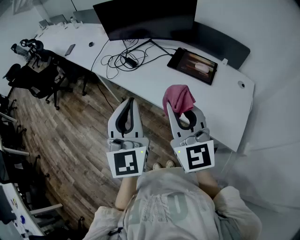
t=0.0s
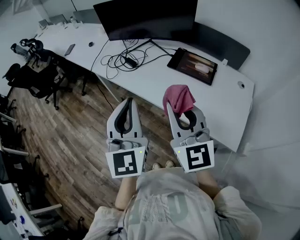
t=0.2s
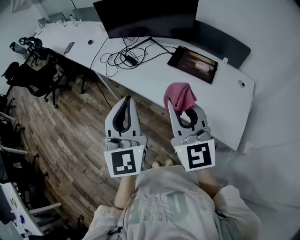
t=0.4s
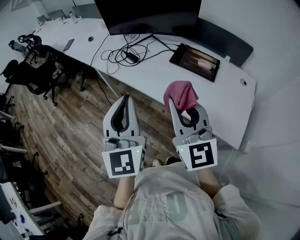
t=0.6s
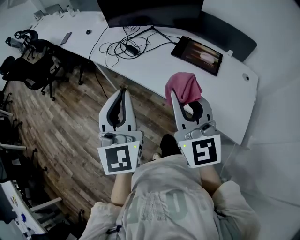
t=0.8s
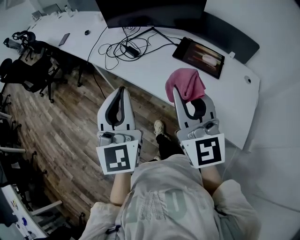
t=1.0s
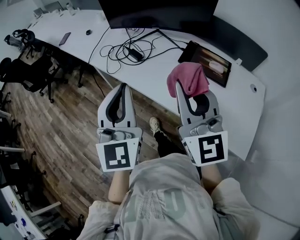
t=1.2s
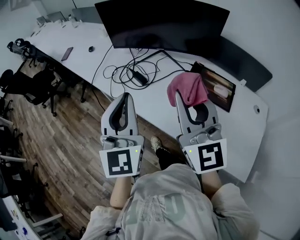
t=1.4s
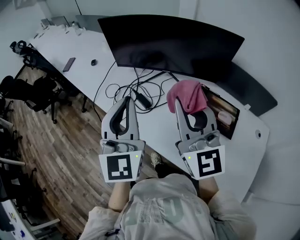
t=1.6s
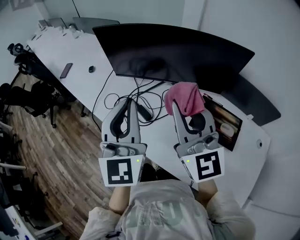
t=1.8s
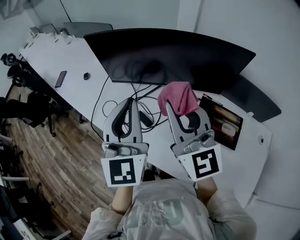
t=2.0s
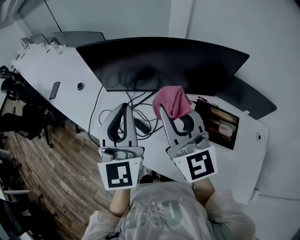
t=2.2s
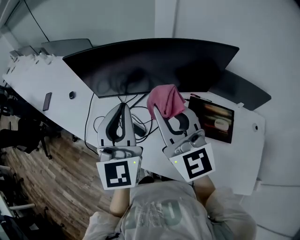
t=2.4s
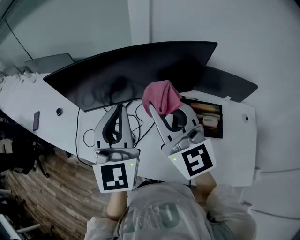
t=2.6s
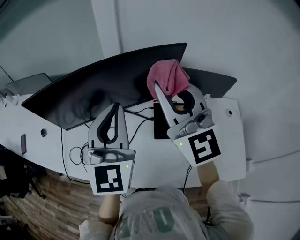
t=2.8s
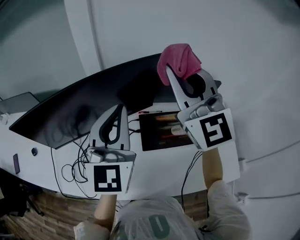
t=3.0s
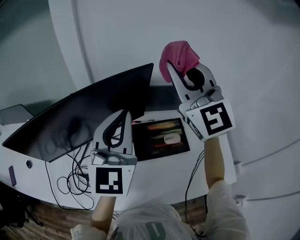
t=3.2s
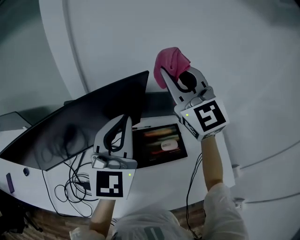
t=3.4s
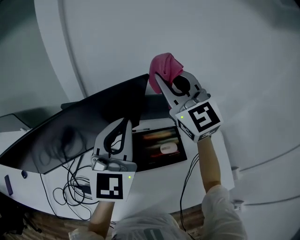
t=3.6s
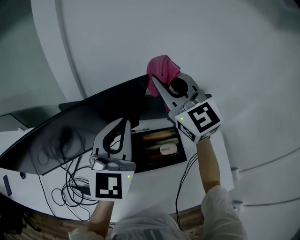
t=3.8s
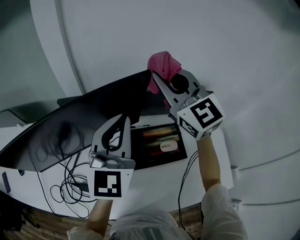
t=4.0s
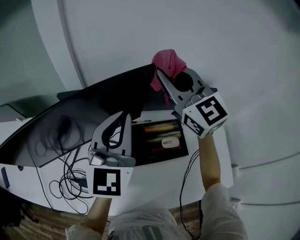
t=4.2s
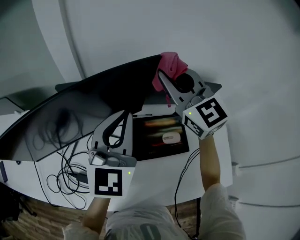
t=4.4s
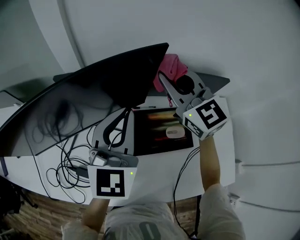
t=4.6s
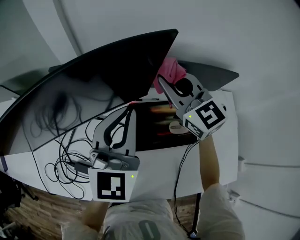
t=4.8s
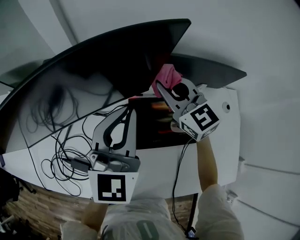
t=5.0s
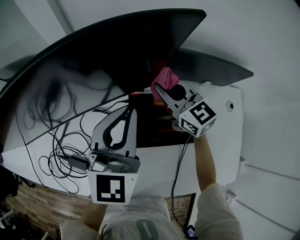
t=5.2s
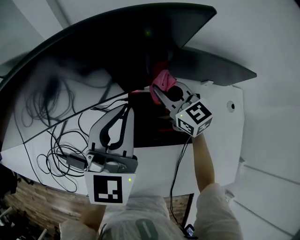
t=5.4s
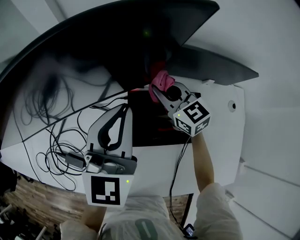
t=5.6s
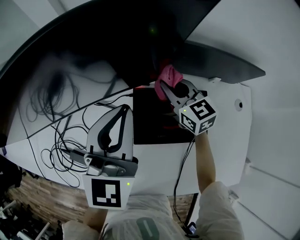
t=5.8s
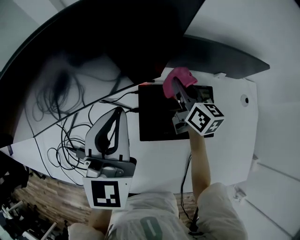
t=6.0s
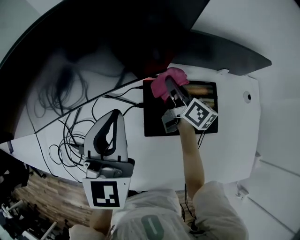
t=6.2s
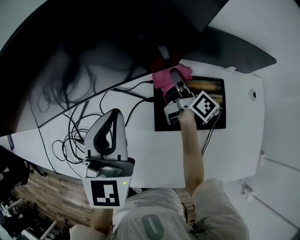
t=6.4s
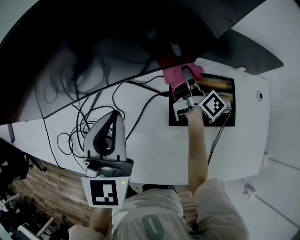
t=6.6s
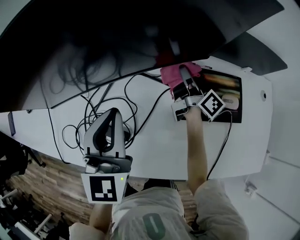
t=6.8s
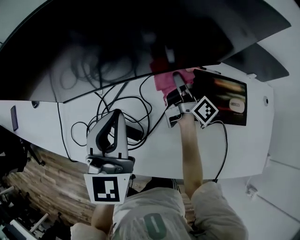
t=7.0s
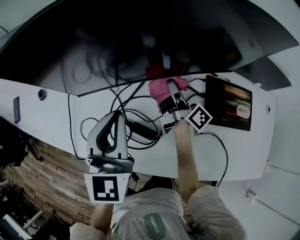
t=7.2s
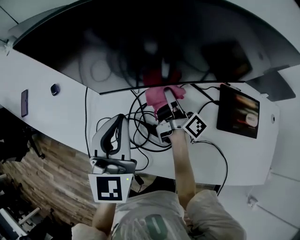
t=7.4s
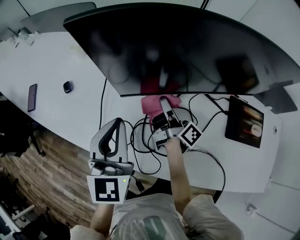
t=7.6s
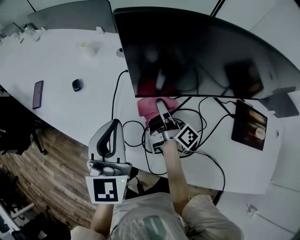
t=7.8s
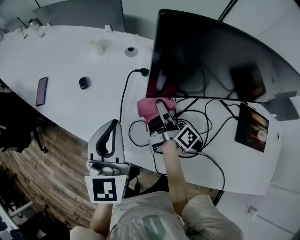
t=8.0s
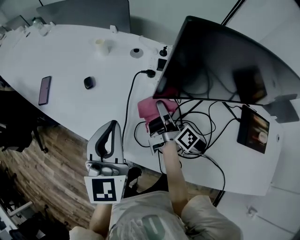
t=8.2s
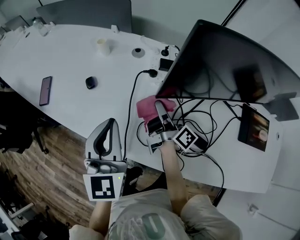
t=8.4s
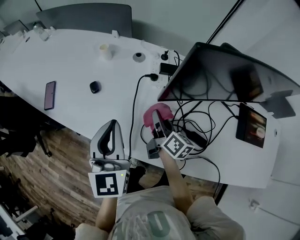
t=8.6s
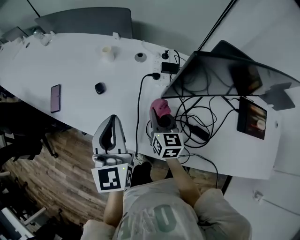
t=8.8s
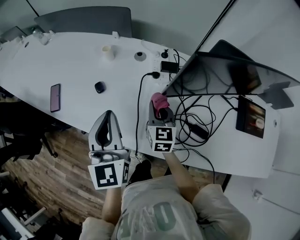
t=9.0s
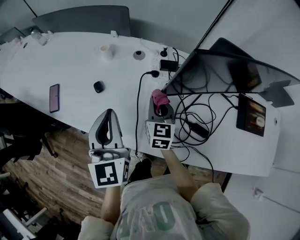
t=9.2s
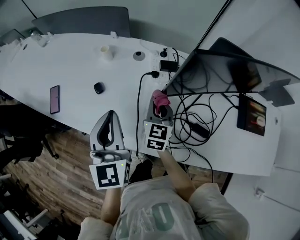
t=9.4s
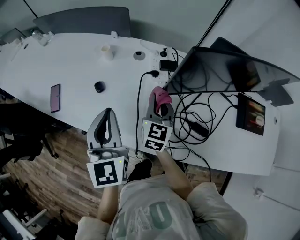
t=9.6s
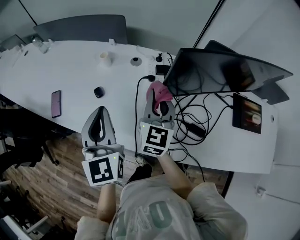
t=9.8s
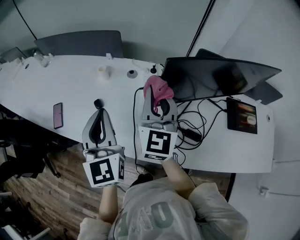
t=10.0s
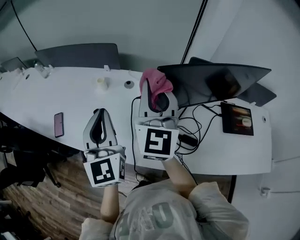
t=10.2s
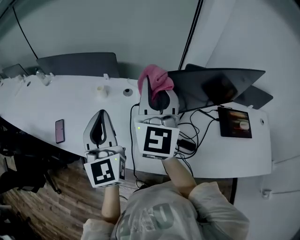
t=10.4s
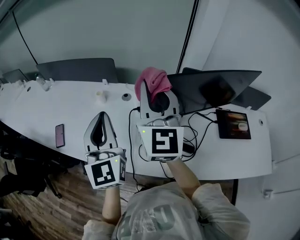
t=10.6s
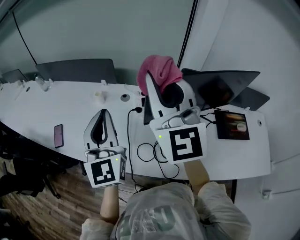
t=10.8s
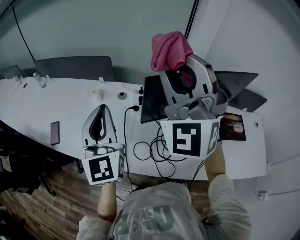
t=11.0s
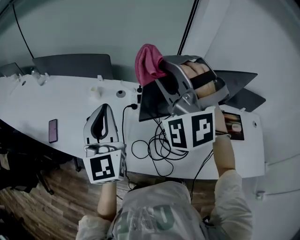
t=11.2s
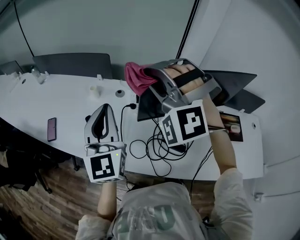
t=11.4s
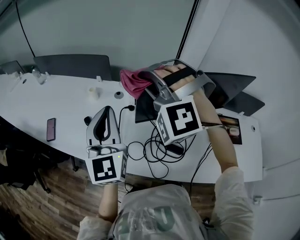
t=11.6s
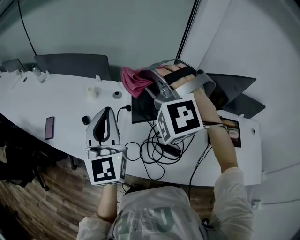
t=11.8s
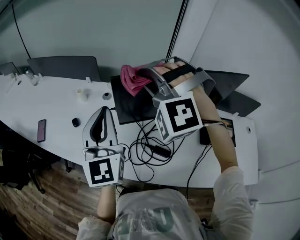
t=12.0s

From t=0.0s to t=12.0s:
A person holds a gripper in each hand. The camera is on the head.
From t=0.0s to t=1.6s: The grippers both shift forward by roughly 30 cm.
From t=1.6s to t=3.0s: The right gripper ends up some 25 cm from where it was, and rotates about 40 degrees. Meanwhile the left gripper moves approximately 25 cm, and changes its angle by roughly 40 degrees.
From t=3.0s to t=4.4s: The right gripper travels forward and downward by some 20 cm. The left gripper moves forward, downward and to the right, about 15 cm.
From t=4.4s to t=6.0s: The left gripper heads downward, covering approximately 10 cm; the right gripper goes about 30 cm downward, and rotates around the line of its fingers by roughly 50 degrees, clockwise from behind.
From t=6.0s to t=7.6s: The two grippers travel together, to the left, roughly 50 cm. The right gripper twists approximately 50 degrees clockwise, seen from behind.
From t=7.6s to t=9.0s: Both grippers travel together to the left, roughly 20 cm. The right gripper rotates around the line of its fingers by roughly 70 degrees, counterclockwise from behind.
From t=9.0s to t=10.4s: The right gripper is displaced upward by roughly 35 cm, and tips its fingers upward by approximately 40 degrees. Meanwhile the left gripper heads upward, covering some 10 cm.
From t=10.4s to t=12.0s: The left gripper moves to the right, about 10 cm; the right gripper travels to the right by approximately 5 cm, moves some 10 cm upward and comes back, and rolls counterclockwise, seen from behind, by approximately 90 degrees.

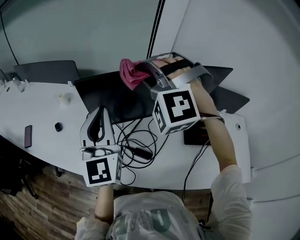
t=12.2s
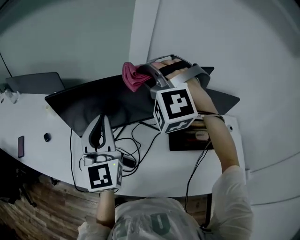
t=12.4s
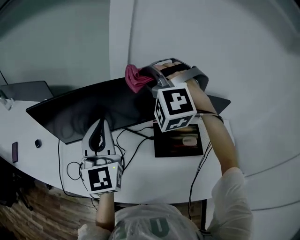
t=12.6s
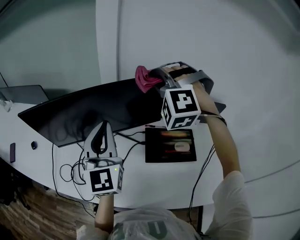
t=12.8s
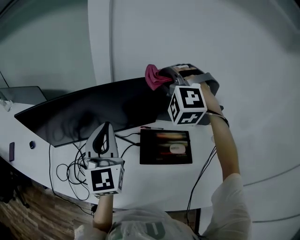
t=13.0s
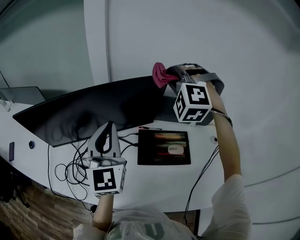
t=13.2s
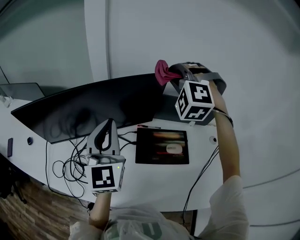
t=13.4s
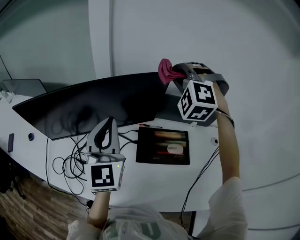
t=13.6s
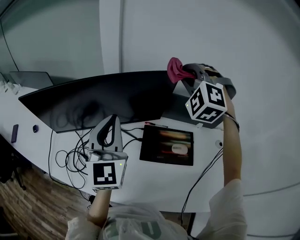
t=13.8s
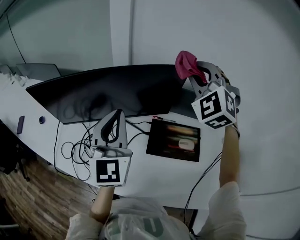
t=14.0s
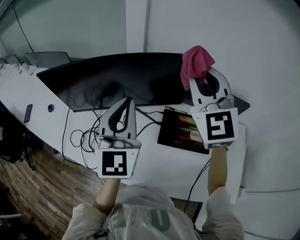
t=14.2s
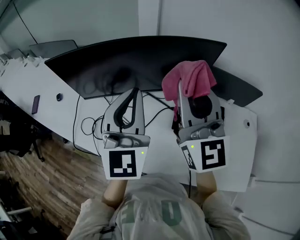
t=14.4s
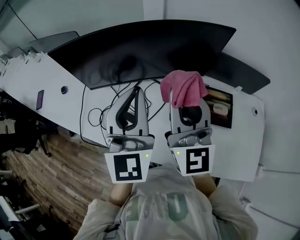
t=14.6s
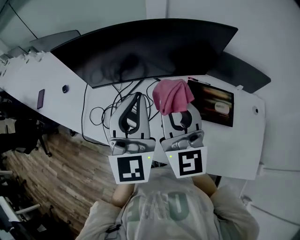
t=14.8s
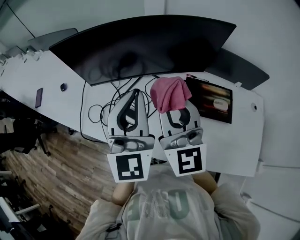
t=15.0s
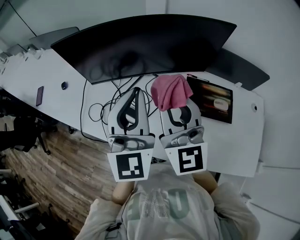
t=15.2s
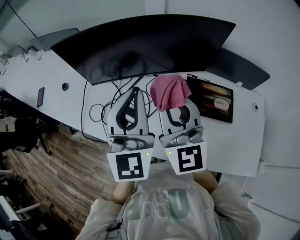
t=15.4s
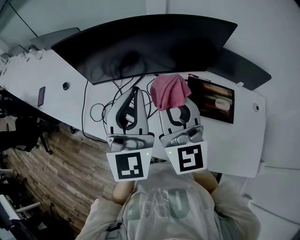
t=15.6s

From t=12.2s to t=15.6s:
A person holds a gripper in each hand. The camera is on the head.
From t=12.2s to t=13.8s: Both grippers move to the right, roughly 35 cm. The right gripper rotates approximately 20 degrees.
From t=13.8s to t=15.6s: The right gripper heads to the left and backward, covering approximately 35 cm, and twists roughly 70 degrees clockwise, seen from behind, while the left gripper is displaced to the left and backward by about 15 cm.

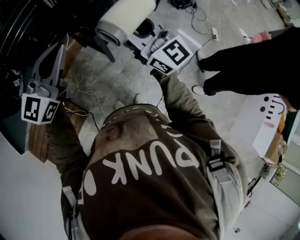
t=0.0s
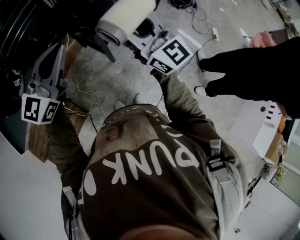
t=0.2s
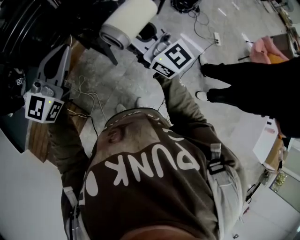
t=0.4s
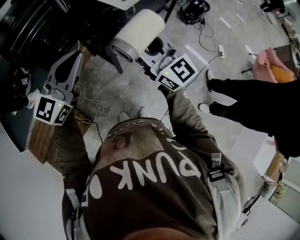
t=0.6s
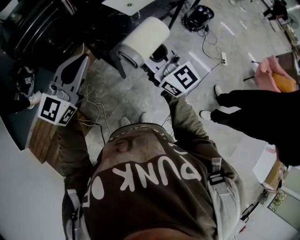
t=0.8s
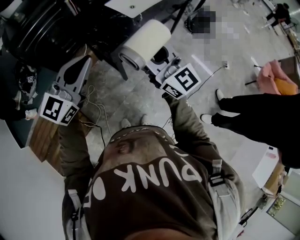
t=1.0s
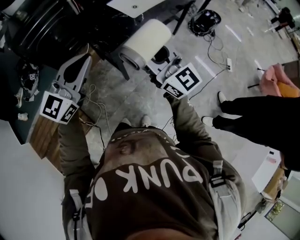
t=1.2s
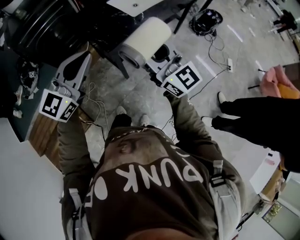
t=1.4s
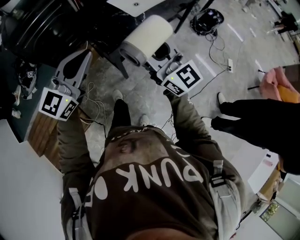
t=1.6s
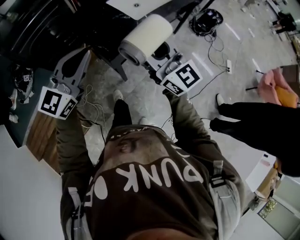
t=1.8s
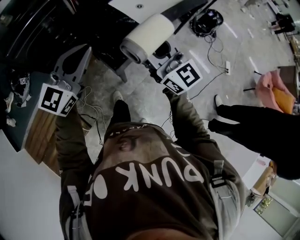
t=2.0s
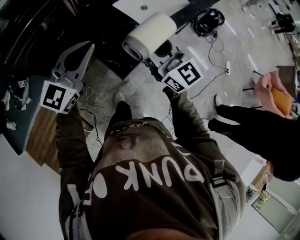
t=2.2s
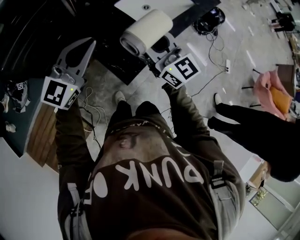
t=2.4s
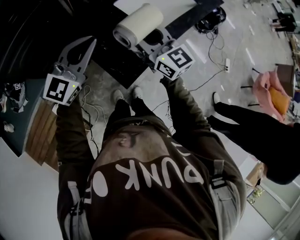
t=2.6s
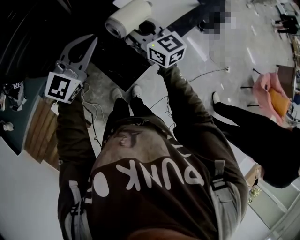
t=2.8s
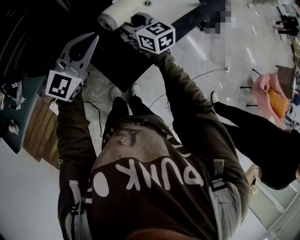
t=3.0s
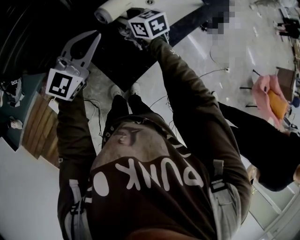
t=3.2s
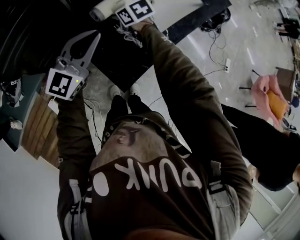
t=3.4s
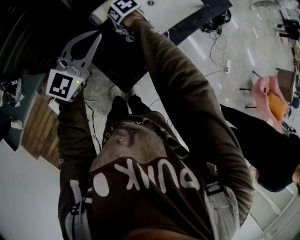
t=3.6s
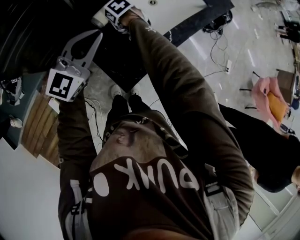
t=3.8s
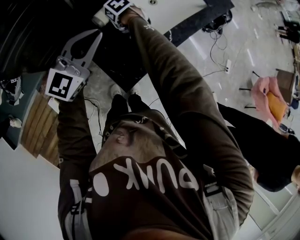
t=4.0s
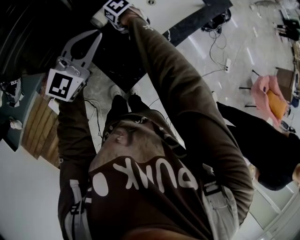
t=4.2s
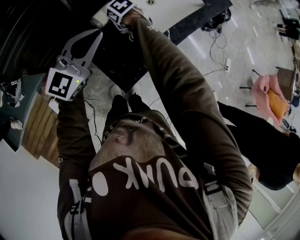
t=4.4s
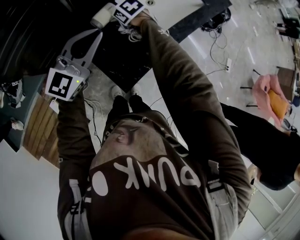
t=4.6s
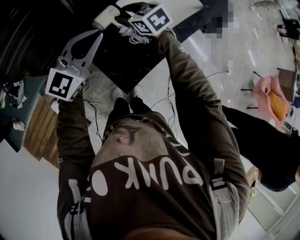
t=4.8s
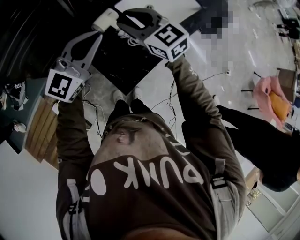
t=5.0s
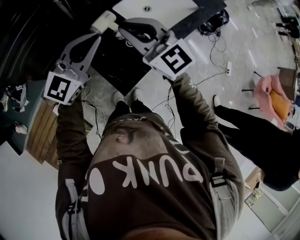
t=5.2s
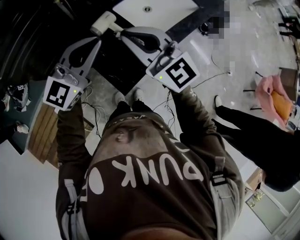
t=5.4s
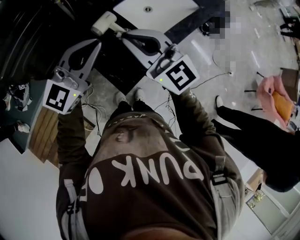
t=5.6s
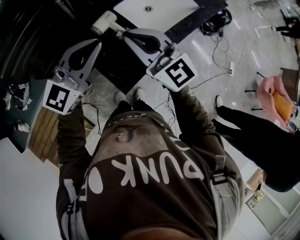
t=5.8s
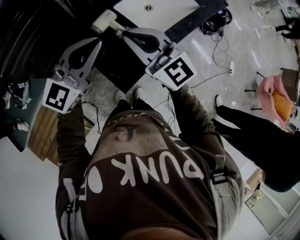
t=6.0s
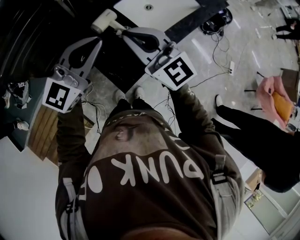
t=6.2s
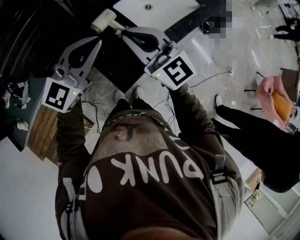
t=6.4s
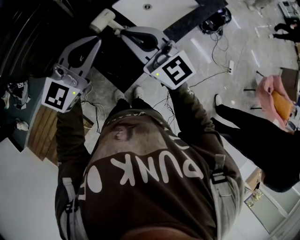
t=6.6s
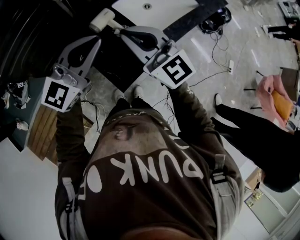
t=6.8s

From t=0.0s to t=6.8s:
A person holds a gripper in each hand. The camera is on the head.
From t=0.0s to t=1.4s: There are only small adjustments of the grippers.
From t=1.4s to t=2.8s: Both grippers move forward, roughly 40 cm. The right gripper swivels roughly 30 degrees.
From t=2.8s to t=4.0s: The right gripper heads downward and forward, covering approximately 20 cm, and angles its fingers downward, by roughly 60 degrees.
From t=4.0s to t=5.4s: The left gripper heads upward, covering approximately 5 cm. Meanwhile the right gripper shifts roughly 35 cm upward and backward, angles its fingers upward, by approximately 70 degrees, and closes.
From t=5.4s to t=6.8s: The grippers make only small movements.

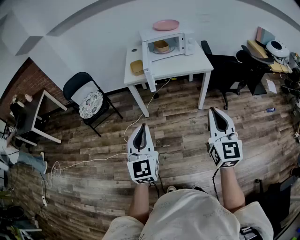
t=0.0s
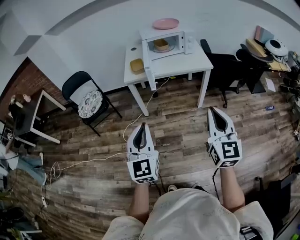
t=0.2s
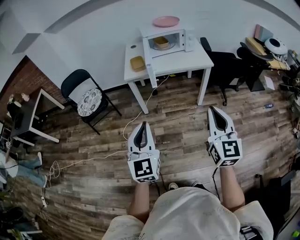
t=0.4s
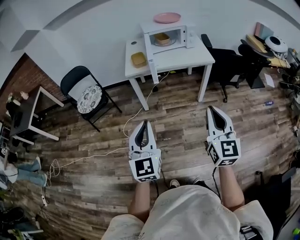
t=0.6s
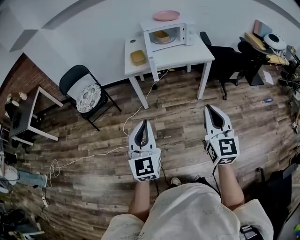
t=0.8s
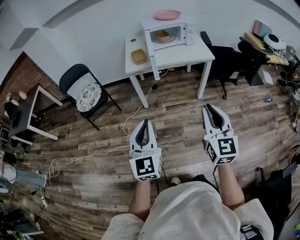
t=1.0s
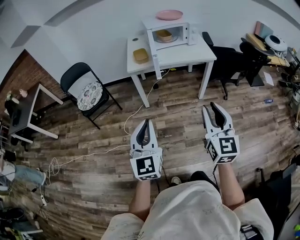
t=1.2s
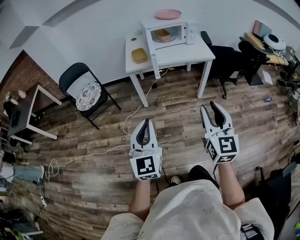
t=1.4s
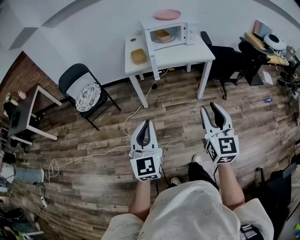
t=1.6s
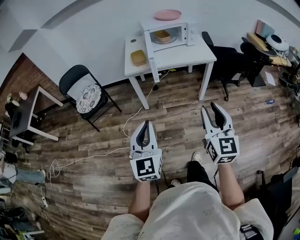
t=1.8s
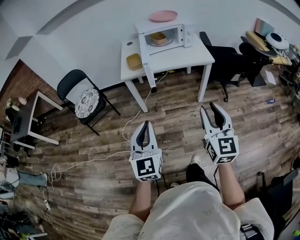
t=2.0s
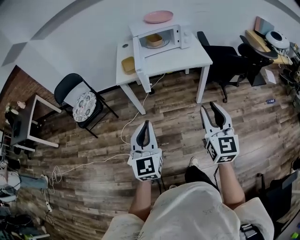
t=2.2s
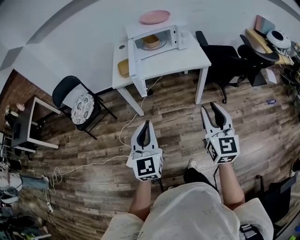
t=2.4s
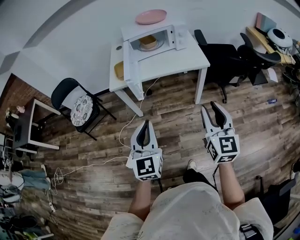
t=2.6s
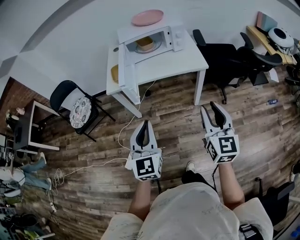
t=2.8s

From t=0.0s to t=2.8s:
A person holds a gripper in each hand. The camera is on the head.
From t=0.0s to t=1.4s: The two grippers go about 10 cm to the left. The right gripper opens up.
From t=1.4s to t=2.8s: Both grippers move forward and to the right, some 30 cm.
